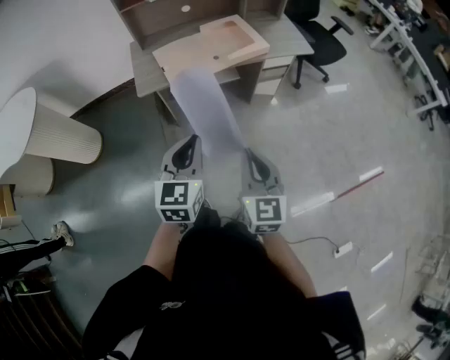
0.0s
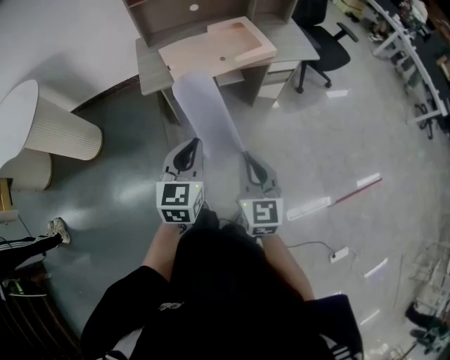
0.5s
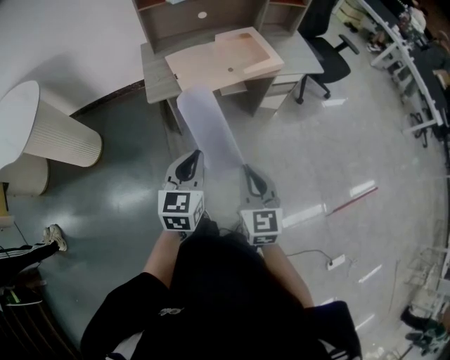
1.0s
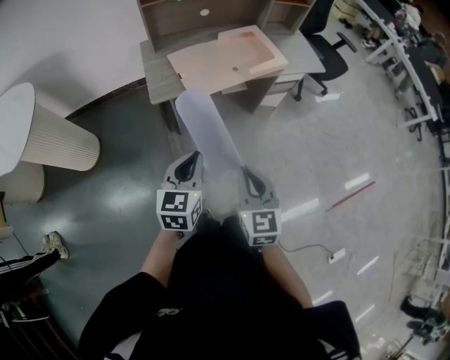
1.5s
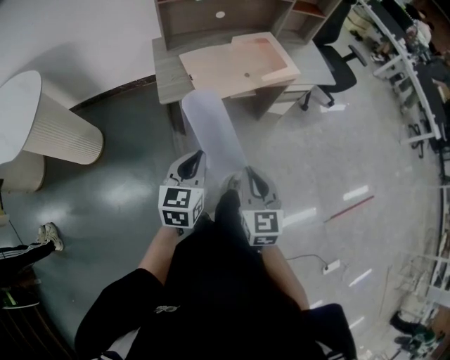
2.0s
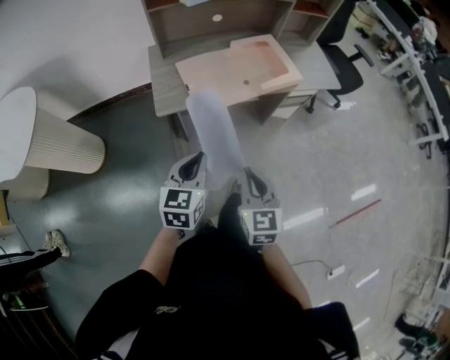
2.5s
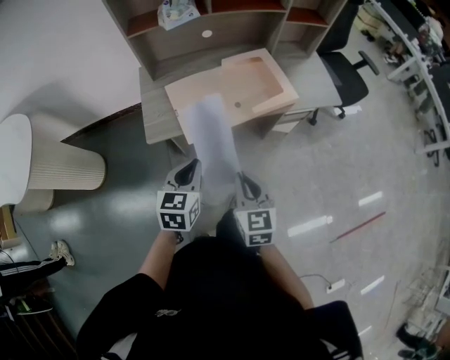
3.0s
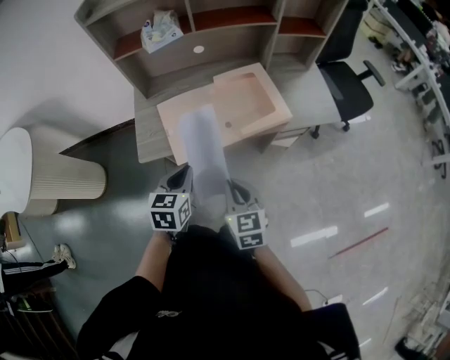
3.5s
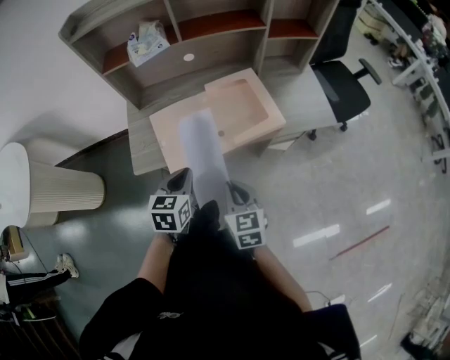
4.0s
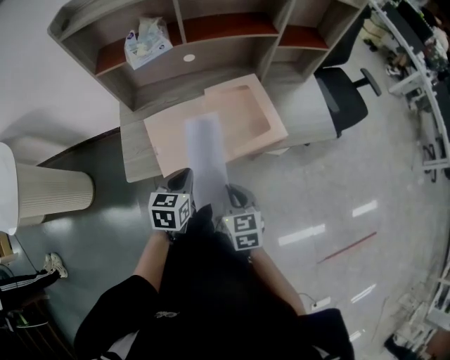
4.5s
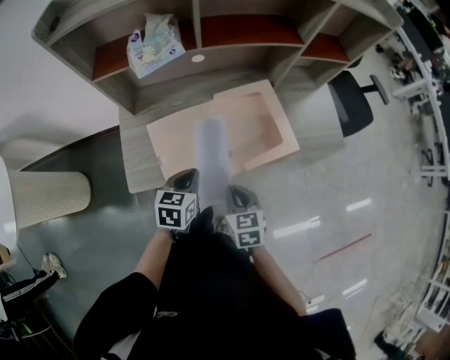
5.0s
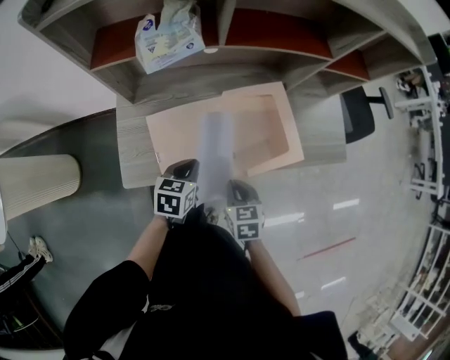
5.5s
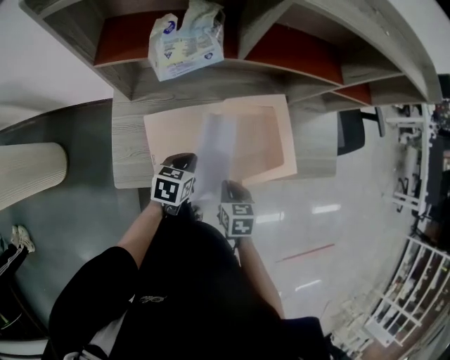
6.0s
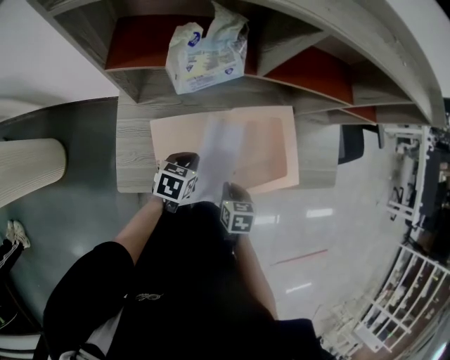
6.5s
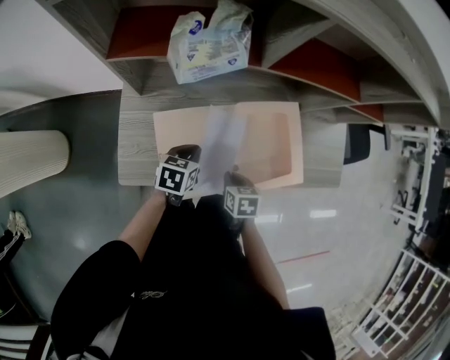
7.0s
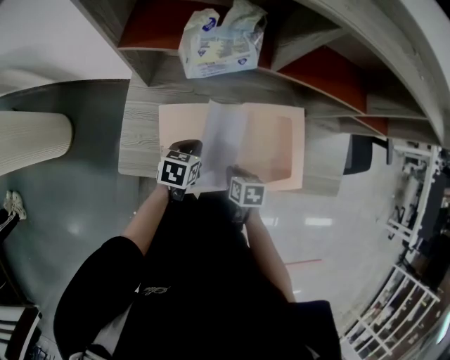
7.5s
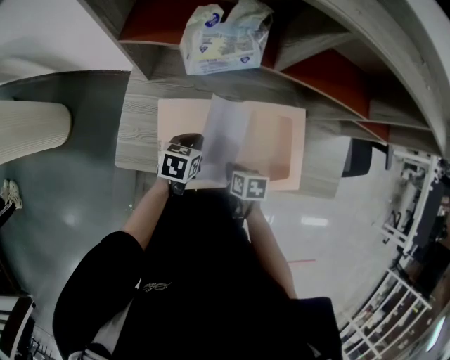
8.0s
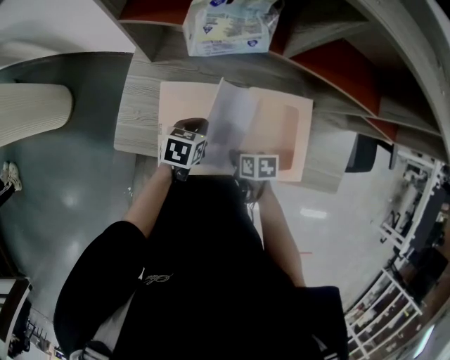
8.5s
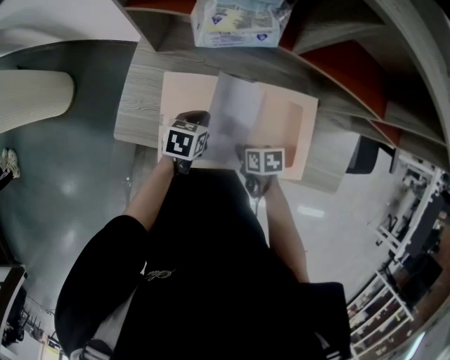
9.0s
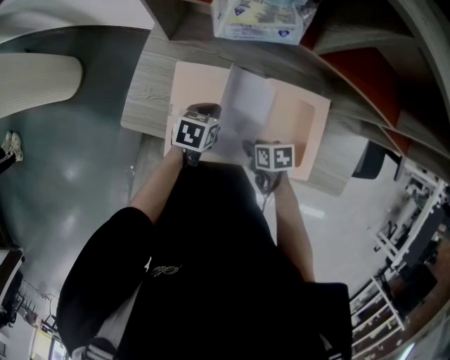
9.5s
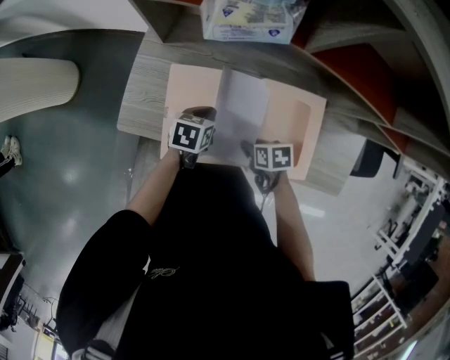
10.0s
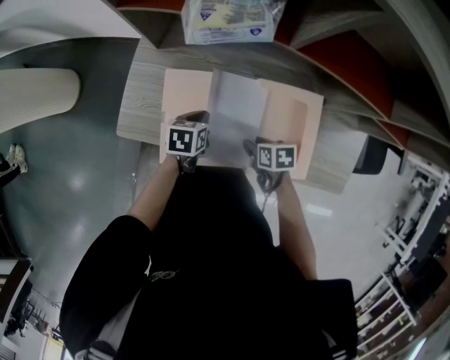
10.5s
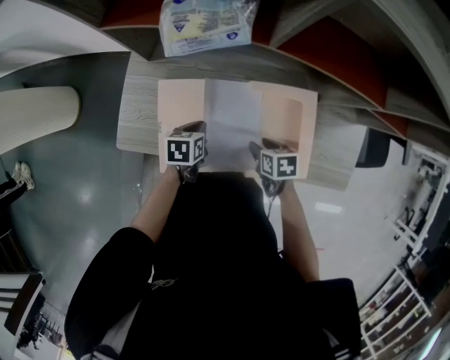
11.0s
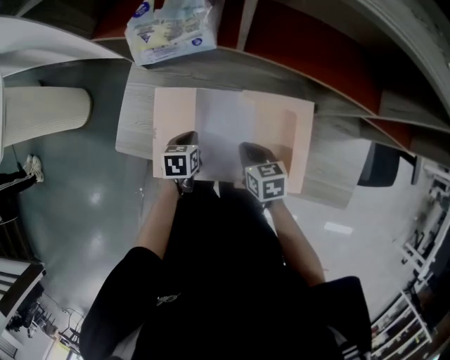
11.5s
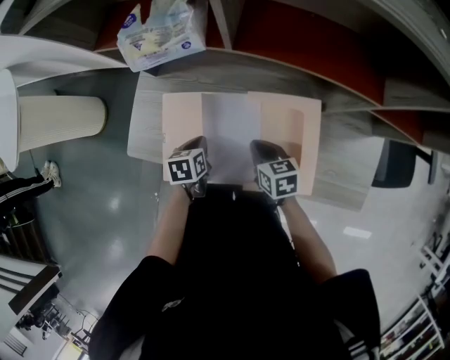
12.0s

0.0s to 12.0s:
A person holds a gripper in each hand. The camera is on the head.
0.0s to 2.0s: The right gripper goes some 15 cm to the left. Meanwhile the left gripper shifts some 15 cm to the left, downward and forward.
2.0s to 4.0s: Both grippers travel together forward and to the right, roughly 30 cm.
4.0s to 6.0s: Both grippers move forward and downward, roughly 25 cm. The right gripper rotates some 30 degrees, while the left gripper swivels roughly 20 degrees.
6.0s to 8.0s: The right gripper heads downward, covering approximately 5 cm, and changes its angle by roughly 20 degrees. Meanwhile the left gripper moves roughly 5 cm.
8.0s to 10.0s: The right gripper swivels roughly 20 degrees, and opens up.
10.0s to 12.0s: The left gripper swivels about 20 degrees; the right gripper changes place by some 10 cm, rotates some 30 degrees, and closes its fingers.

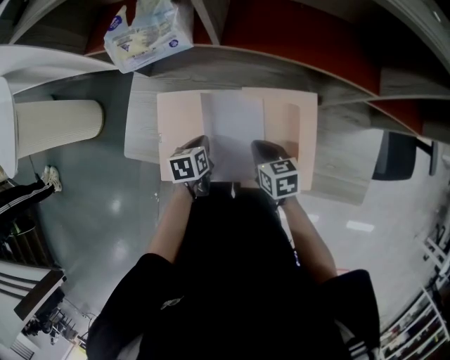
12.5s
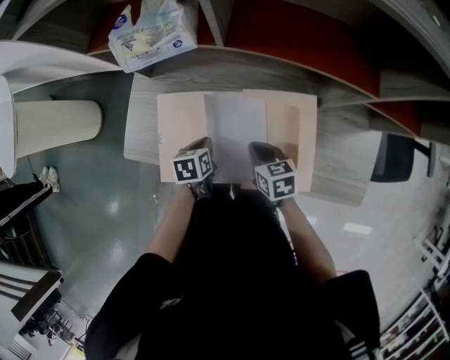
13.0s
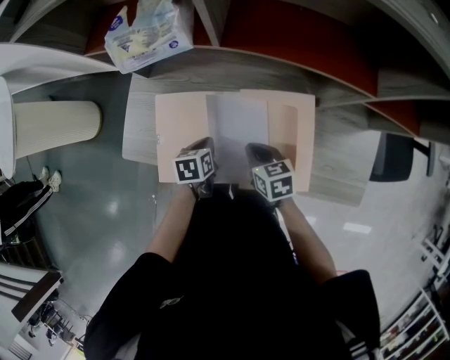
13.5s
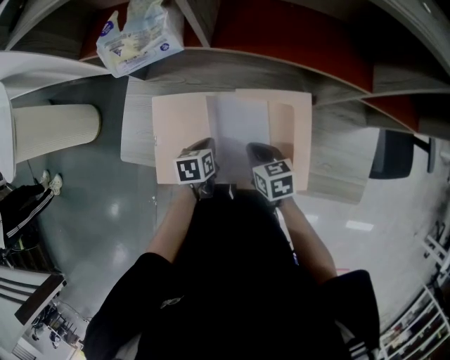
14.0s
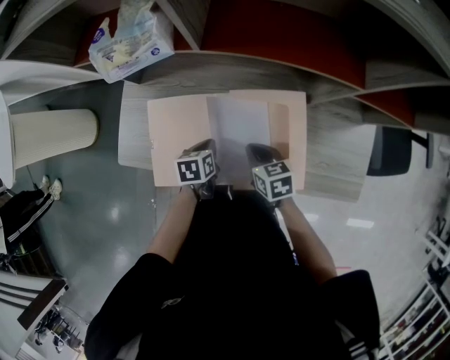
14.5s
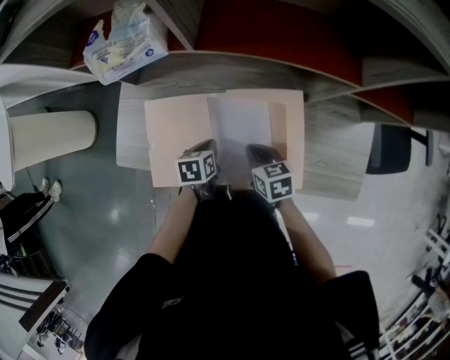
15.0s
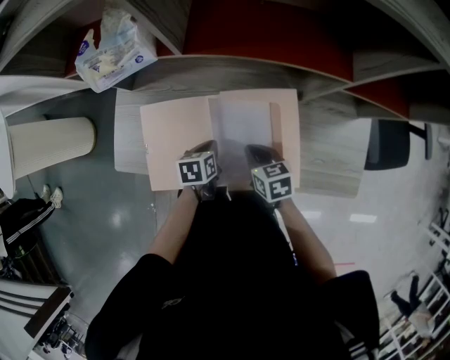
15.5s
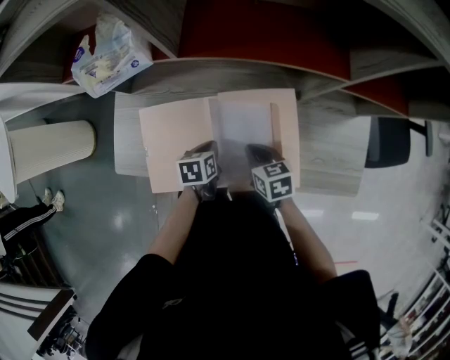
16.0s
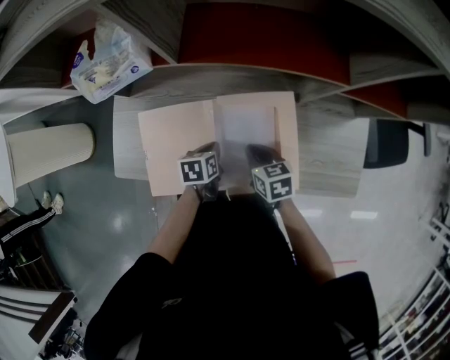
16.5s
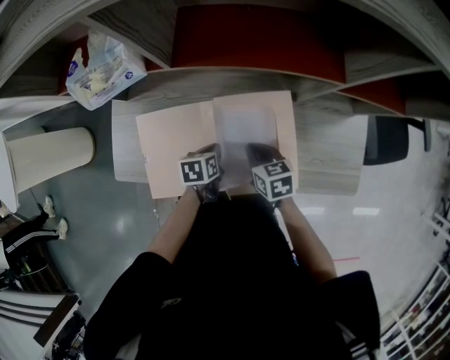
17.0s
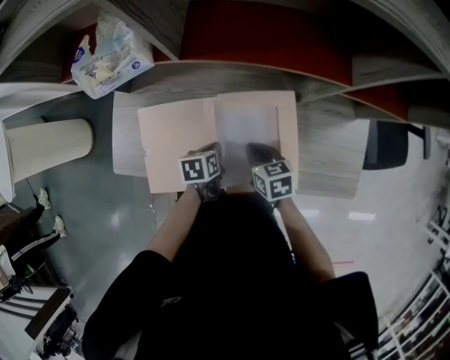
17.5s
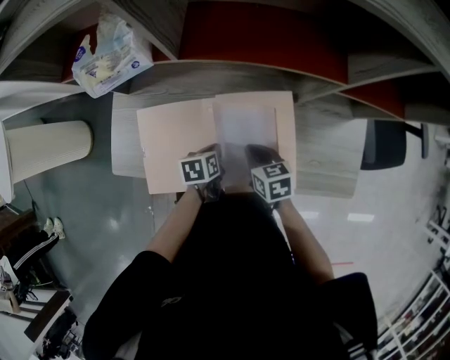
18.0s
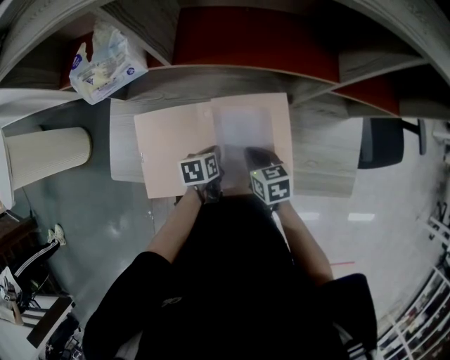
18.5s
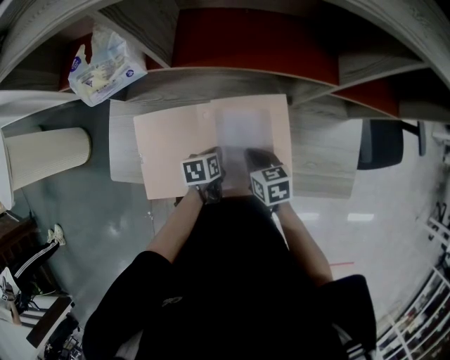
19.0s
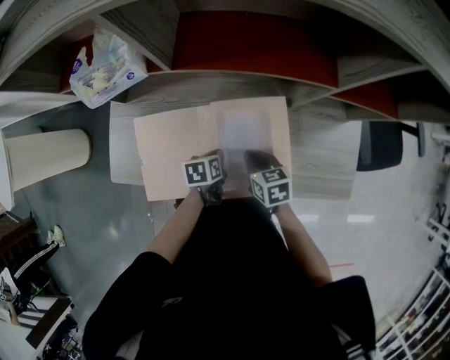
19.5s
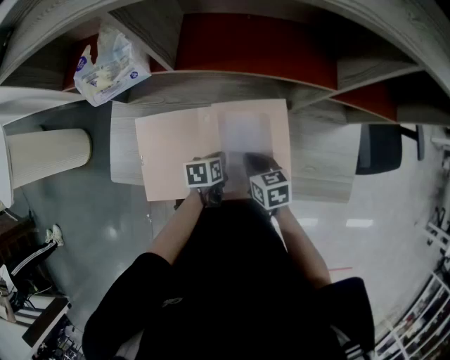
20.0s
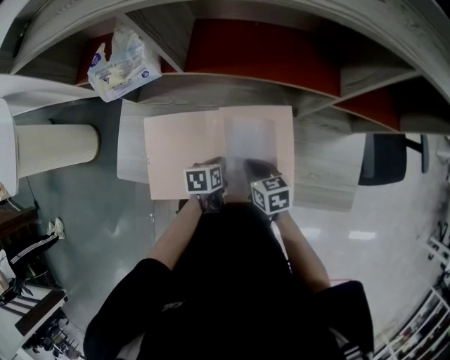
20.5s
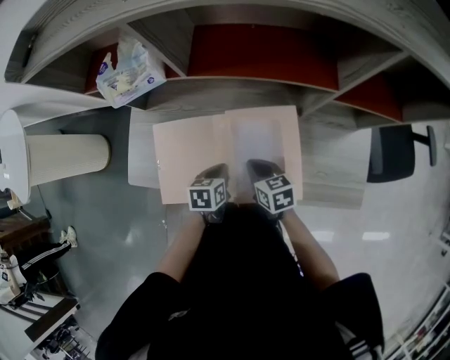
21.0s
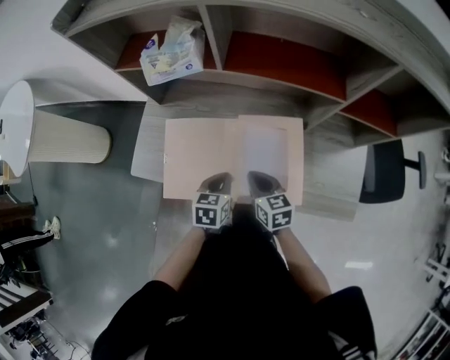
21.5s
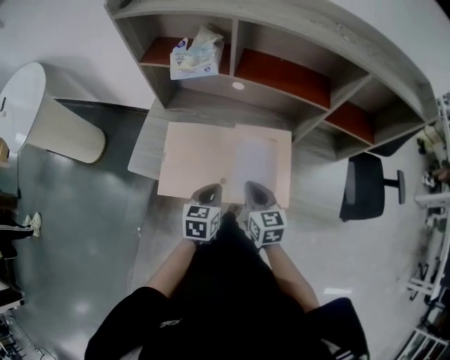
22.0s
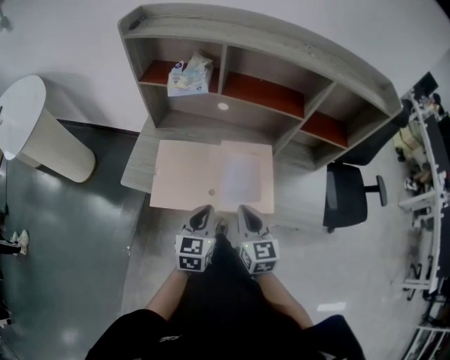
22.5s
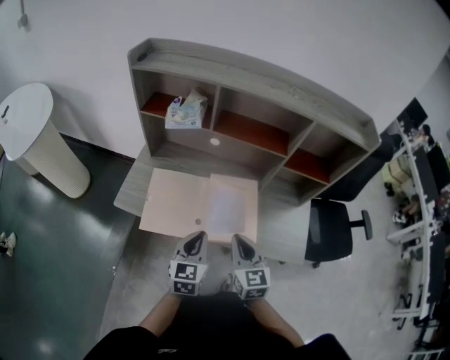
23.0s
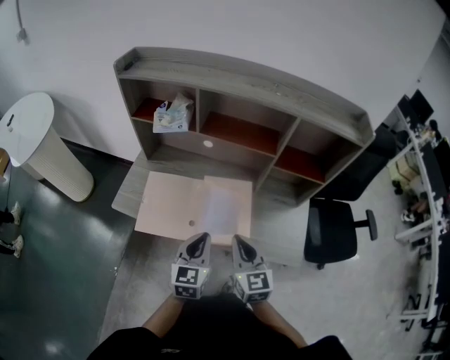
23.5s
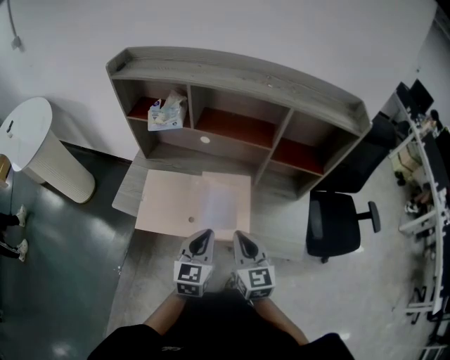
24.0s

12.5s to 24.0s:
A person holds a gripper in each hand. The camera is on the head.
12.5s to 14.5s: The left gripper moves to the right, approximately 5 cm.
14.5s to 18.5s: The grippers move only a little.
18.5s to 20.0s: There are only small adjustments of the grippers.
20.0s to 22.0s: The two grippers go approximately 15 cm upward and backward. The right gripper rotates about 20 degrees. The left gripper changes its angle by approximately 30 degrees.
22.0s to 24.0s: The grippers both shift upward, to the right and backward by some 20 cm. The left gripper turns by approximately 20 degrees.

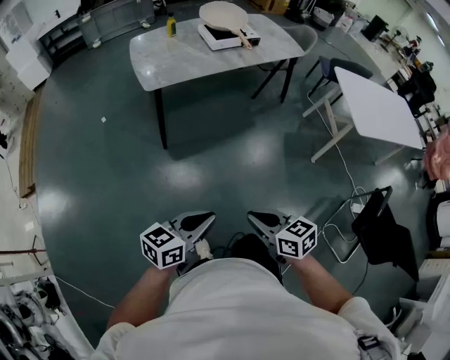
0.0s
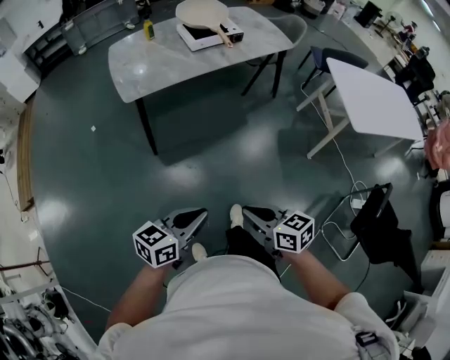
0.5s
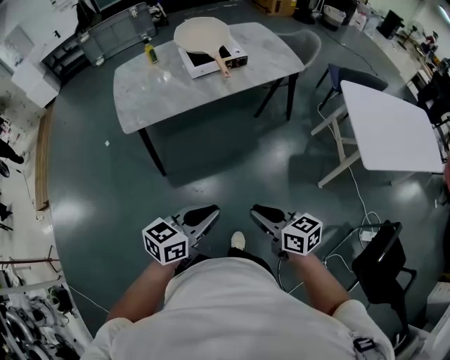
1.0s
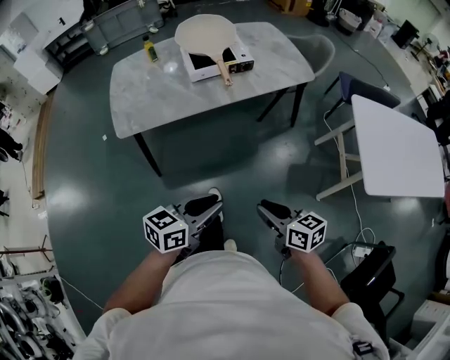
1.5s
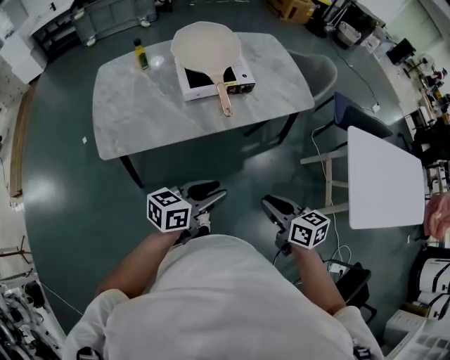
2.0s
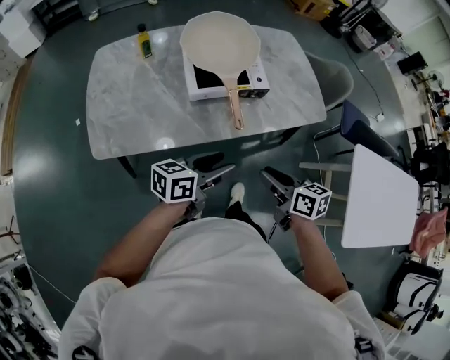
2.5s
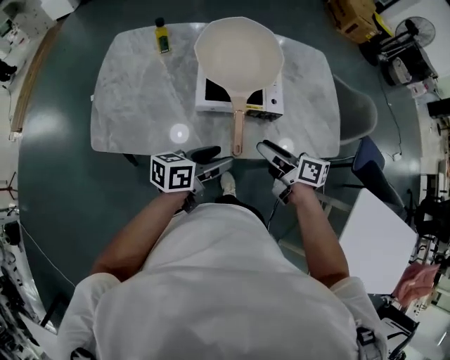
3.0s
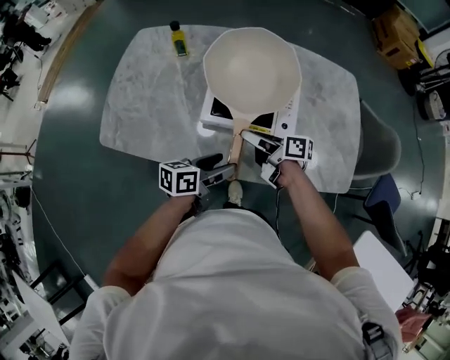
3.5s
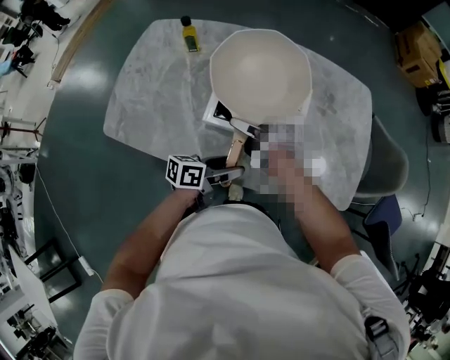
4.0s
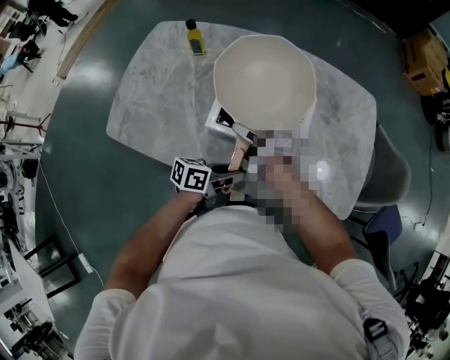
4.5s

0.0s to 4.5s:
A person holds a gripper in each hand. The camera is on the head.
0.0s to 2.0s: The pair of grippers is taken forward, some 60 cm. The left gripper opens up.
2.0s to 4.5s: The left gripper ends up approximately 40 cm from where it was, swivels roughly 40 degrees, and opens and closes again, while the right gripper shifts by roughly 50 cm, swivels about 50 degrees, and opens and closes again.
